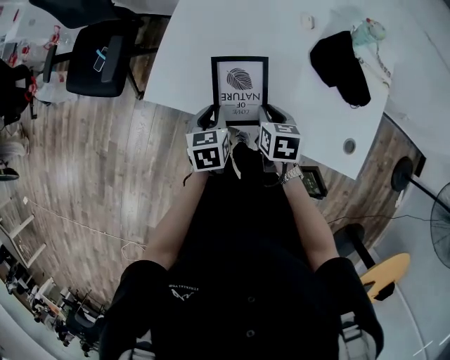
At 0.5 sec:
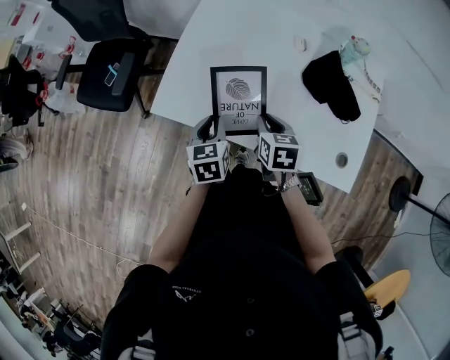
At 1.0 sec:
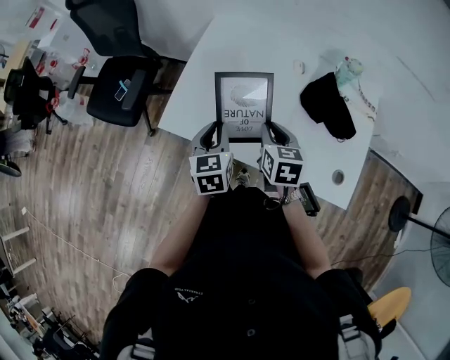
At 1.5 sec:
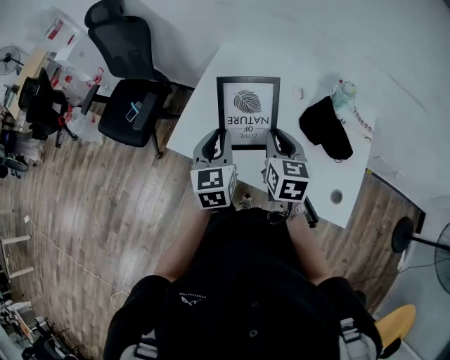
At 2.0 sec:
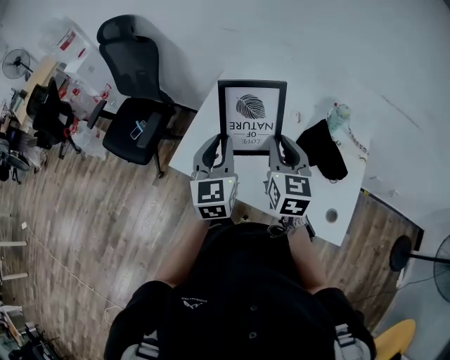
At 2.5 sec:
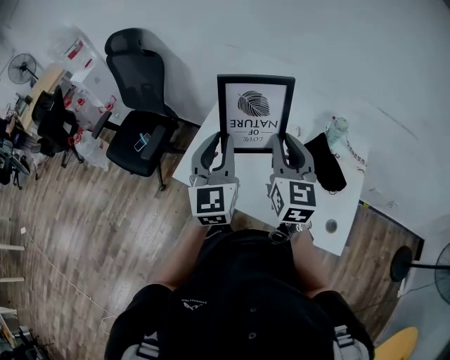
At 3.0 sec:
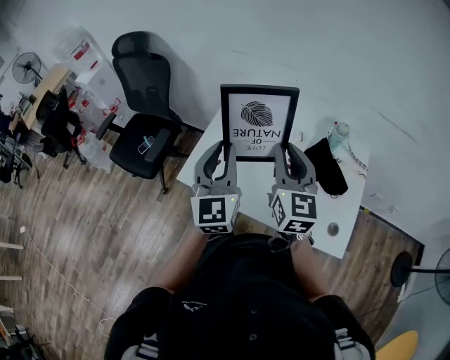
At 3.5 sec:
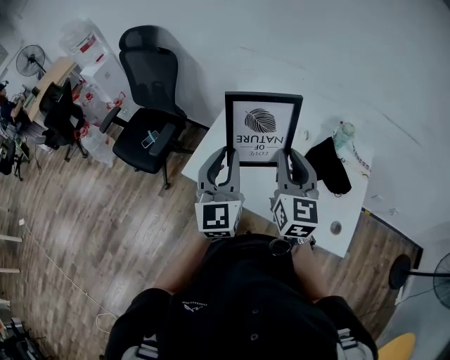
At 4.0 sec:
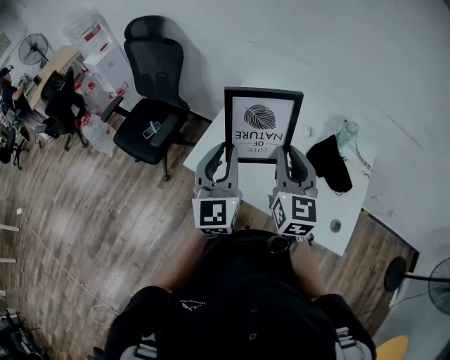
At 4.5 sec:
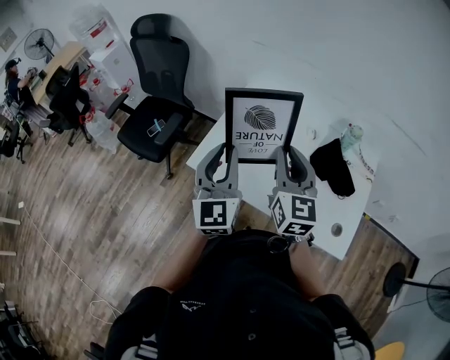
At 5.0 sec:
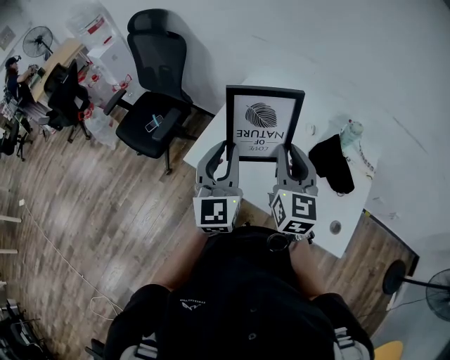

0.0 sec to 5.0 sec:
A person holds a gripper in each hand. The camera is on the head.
0.0 sec to 2.5 sec: The grippers both shift upward by about 35 cm. The right gripper tilts its fingers roughly 50 degrees upward. Meanwhile the left gripper points its fingers about 50 degrees further upward.
2.5 sec to 5.0 sec: The left gripper moves approximately 5 cm.

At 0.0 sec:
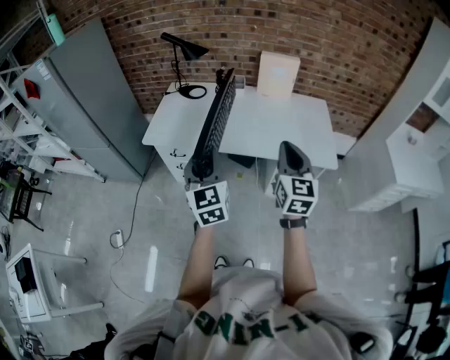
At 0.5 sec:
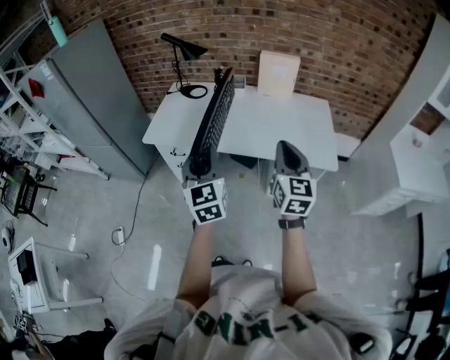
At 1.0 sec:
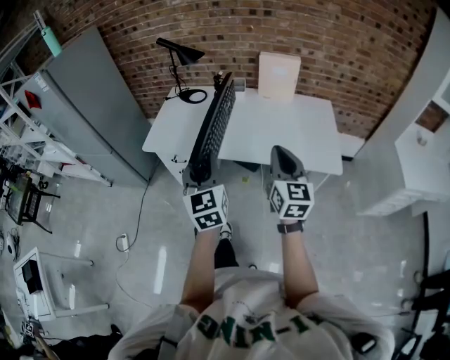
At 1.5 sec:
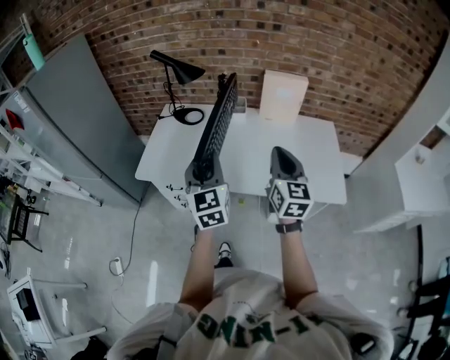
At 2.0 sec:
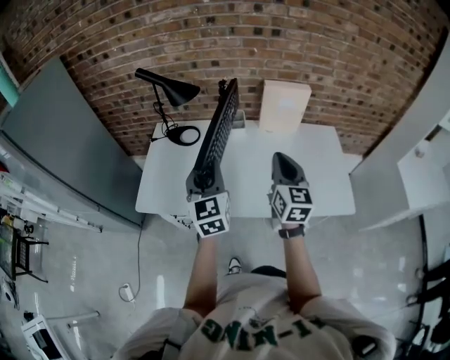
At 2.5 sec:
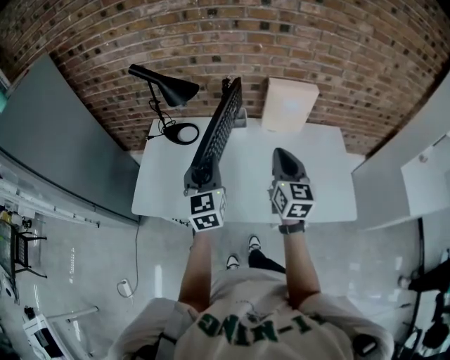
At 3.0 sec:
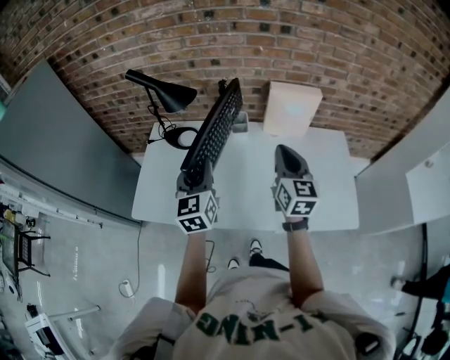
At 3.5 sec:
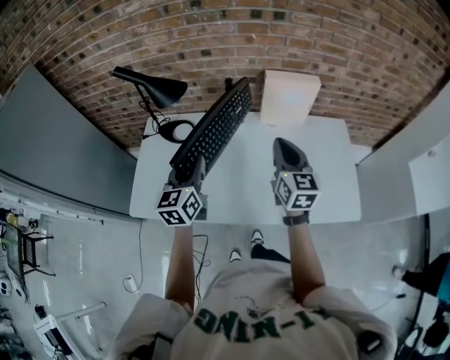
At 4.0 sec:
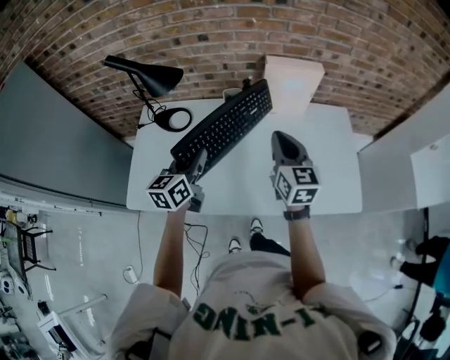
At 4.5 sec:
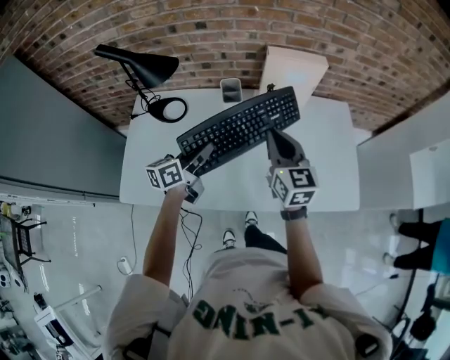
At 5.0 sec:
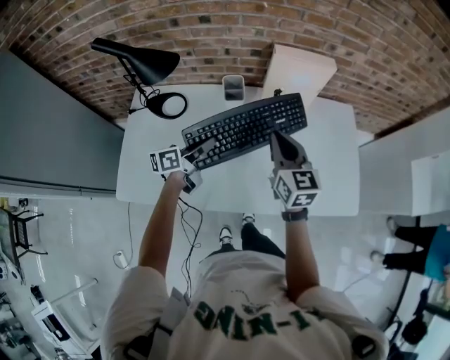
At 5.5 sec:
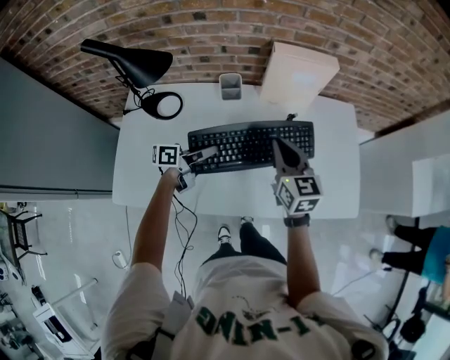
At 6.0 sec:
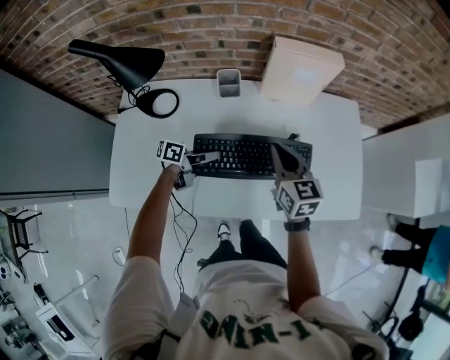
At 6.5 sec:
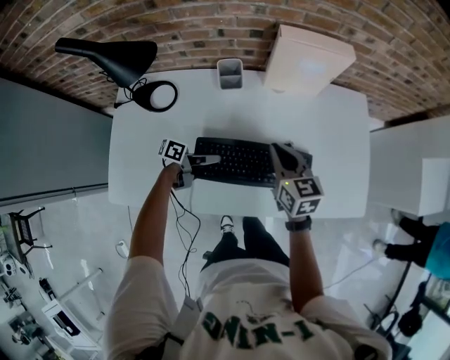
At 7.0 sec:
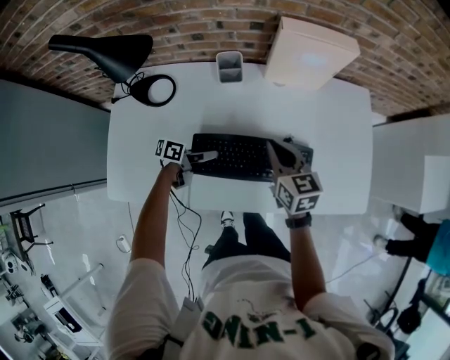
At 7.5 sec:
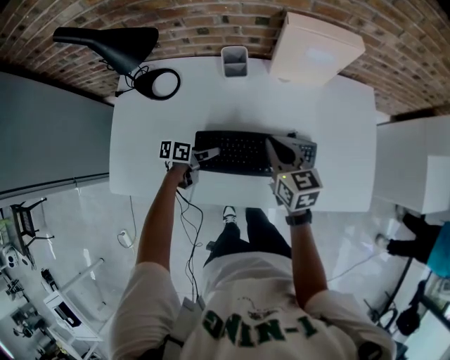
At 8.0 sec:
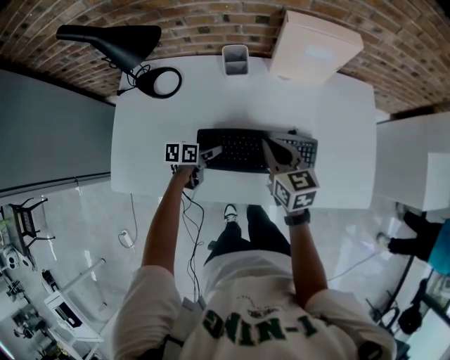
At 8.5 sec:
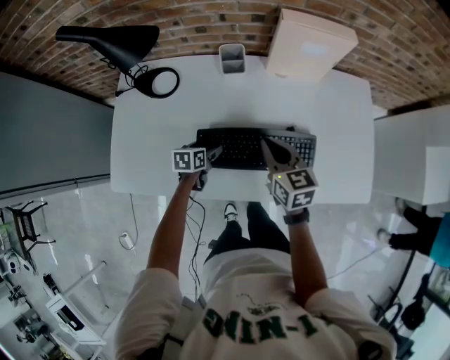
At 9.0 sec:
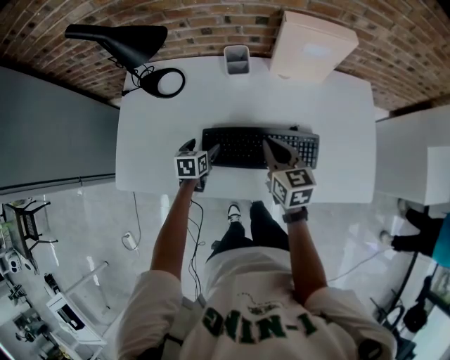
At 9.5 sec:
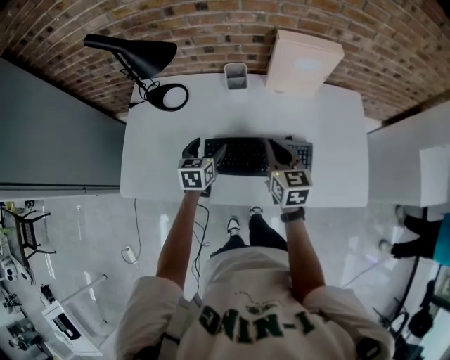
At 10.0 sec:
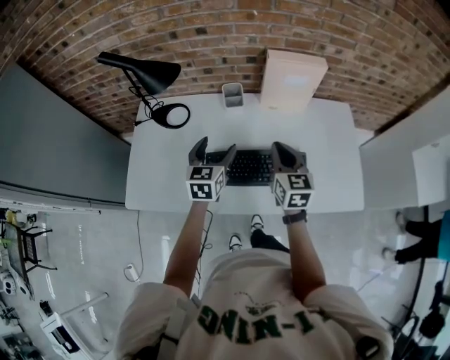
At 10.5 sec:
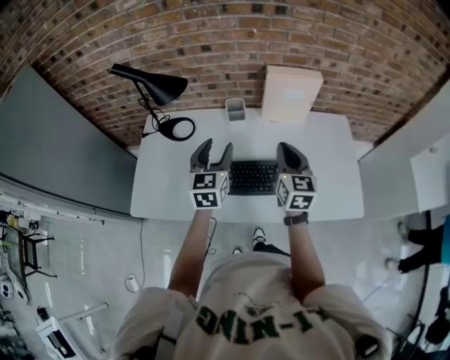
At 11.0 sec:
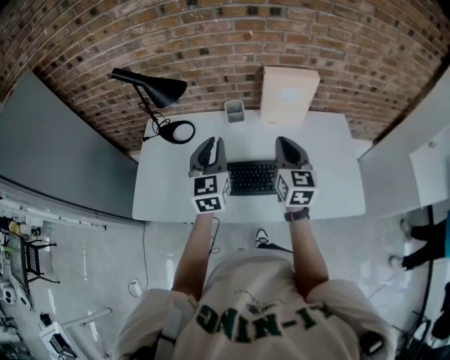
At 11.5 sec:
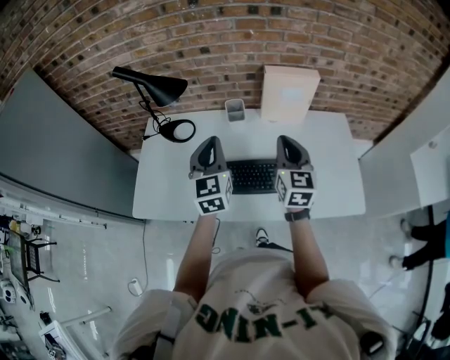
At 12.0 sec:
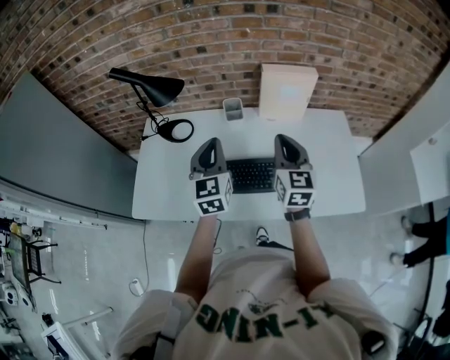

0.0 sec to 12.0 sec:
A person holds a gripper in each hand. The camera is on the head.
0.0 sec to 2.0 sec: The two grippers go approximately 35 cm forward.
2.0 sec to 4.0 sec: The left gripper moves forward and downward, some 15 cm, and turns by roughly 40 degrees. Meanwhile the right gripper heads forward, covering roughly 15 cm.
4.0 sec to 6.0 sec: The left gripper heads downward, covering approximately 20 cm, and rotates some 60 degrees; the right gripper shifts about 10 cm downward.
6.0 sec to 8.0 sec: The right gripper goes about 5 cm downward, while the left gripper travels downward by some 10 cm, swivels roughly 30 degrees, and opens up.
8.0 sec to 10.0 sec: The left gripper shifts about 25 cm upward, and turns by approximately 50 degrees. Meanwhile the right gripper moves upward, roughly 10 cm.
10.0 sec to 12.0 sec: Both grippers move upward, some 10 cm. The left gripper turns by approximately 20 degrees, and closes.

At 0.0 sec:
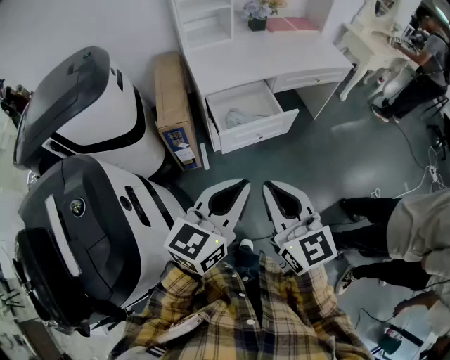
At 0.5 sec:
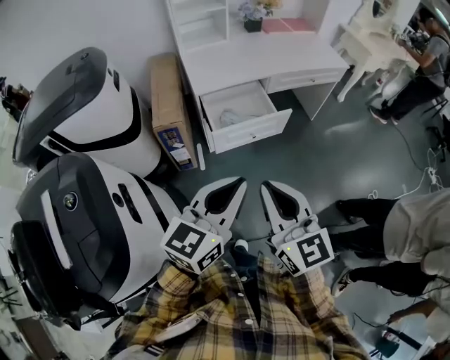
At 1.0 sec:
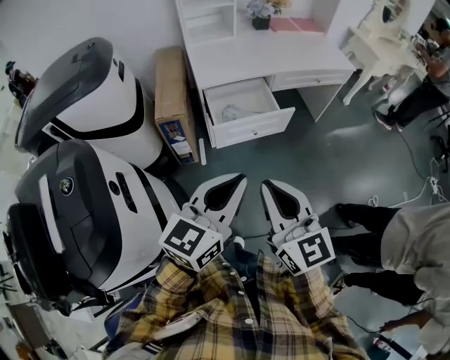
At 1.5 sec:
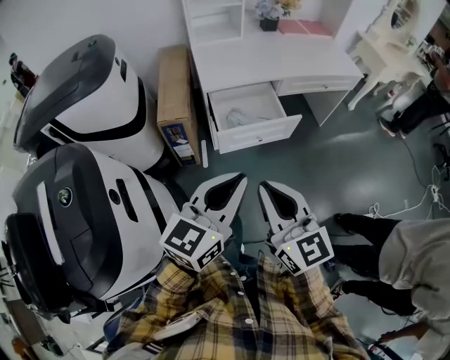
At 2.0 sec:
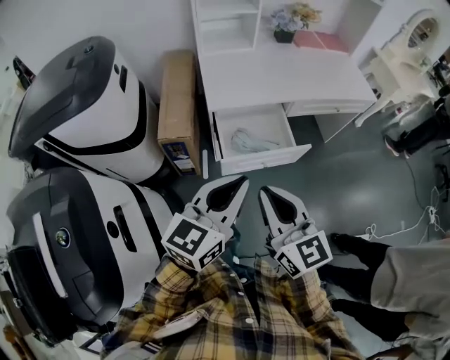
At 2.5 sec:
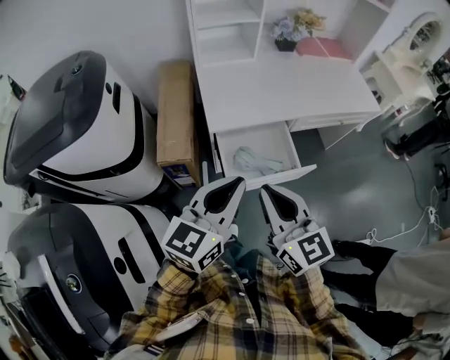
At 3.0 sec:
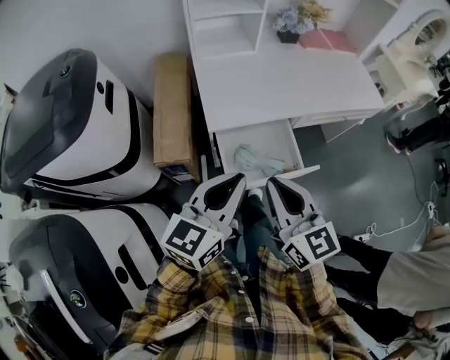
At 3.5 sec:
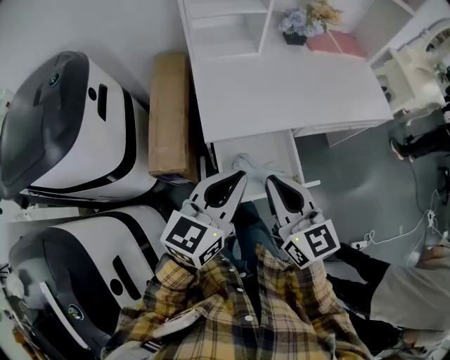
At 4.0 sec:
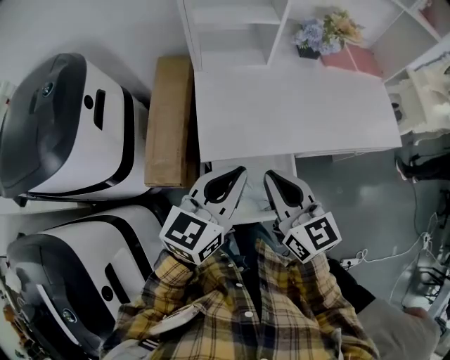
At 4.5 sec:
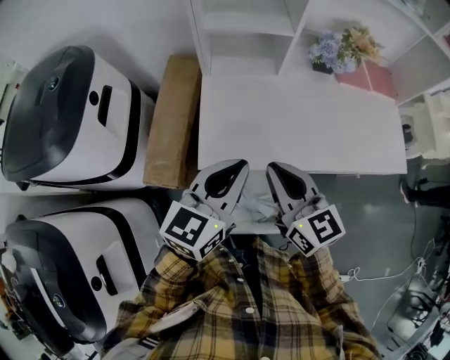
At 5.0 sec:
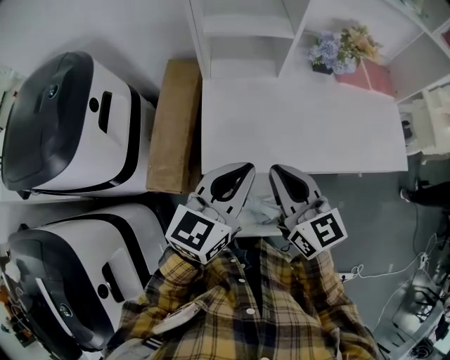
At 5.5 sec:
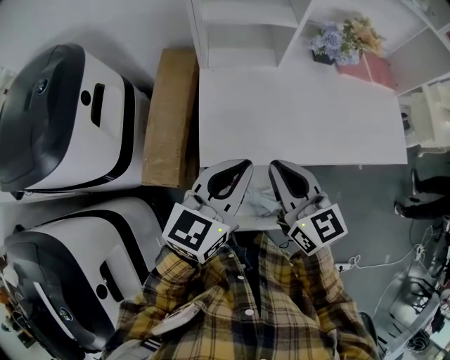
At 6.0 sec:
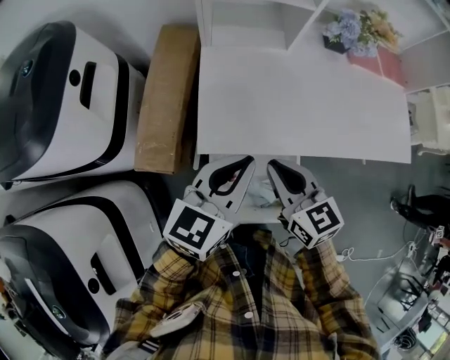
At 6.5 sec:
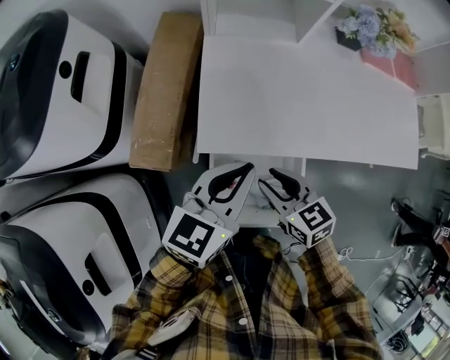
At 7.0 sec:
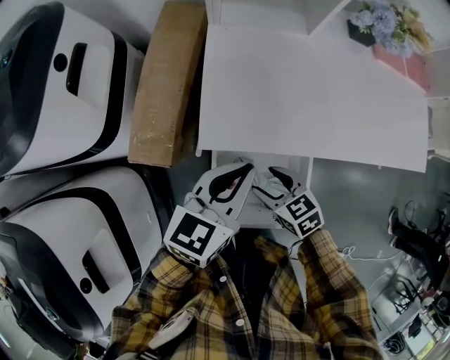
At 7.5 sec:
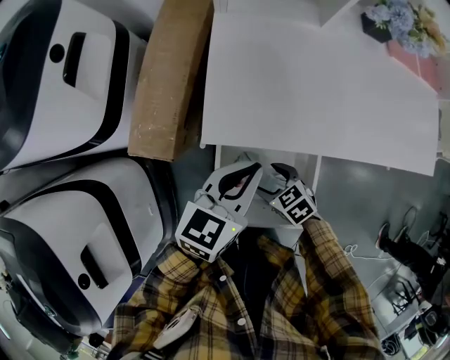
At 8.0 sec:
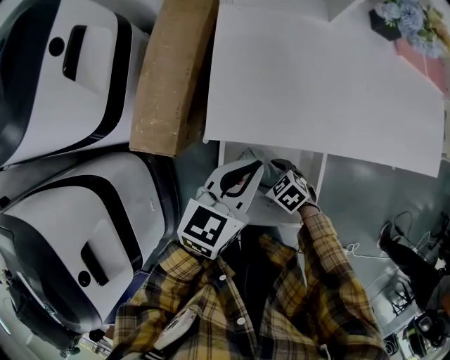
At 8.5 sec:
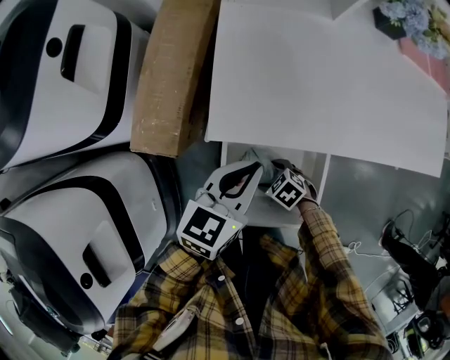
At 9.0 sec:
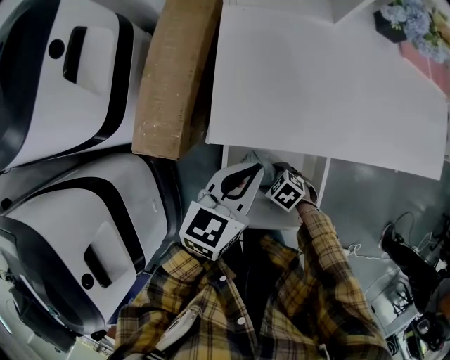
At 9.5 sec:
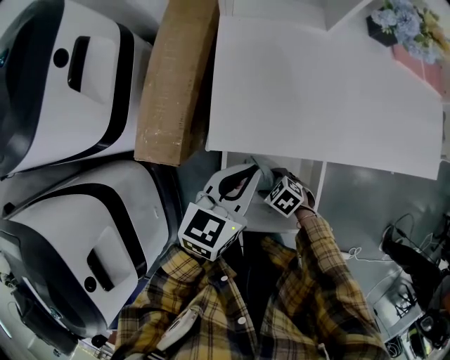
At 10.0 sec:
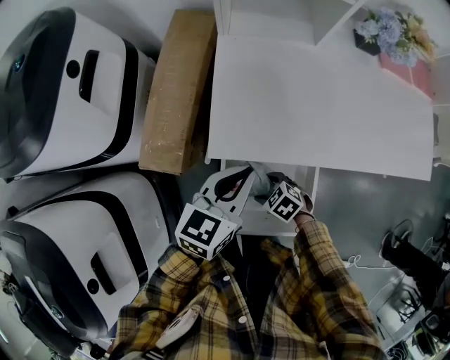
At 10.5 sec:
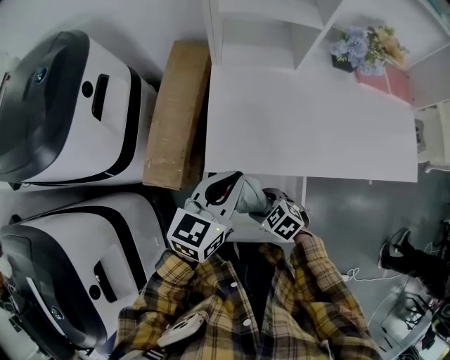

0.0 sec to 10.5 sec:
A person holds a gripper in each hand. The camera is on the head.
0.0 sec to 2.0 sec: The two grippers go approximately 15 cm forward.
2.0 sec to 4.0 sec: Both grippers move forward, some 30 cm.
4.0 sec to 6.5 sec: The right gripper shifts roughly 20 cm downward, and turns by approximately 30 degrees. Meanwhile the left gripper is displaced downward and forward by about 10 cm.
6.5 sec to 8.5 sec: The left gripper moves downward, about 10 cm. Meanwhile the right gripper goes some 25 cm downward, turns by approximately 50 degrees, and opens up.
8.5 sec to 10.5 sec: The grippers both shift upward by about 10 cm.
